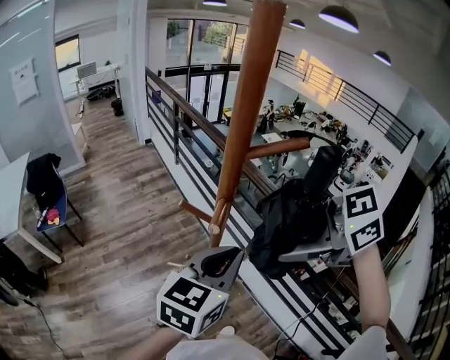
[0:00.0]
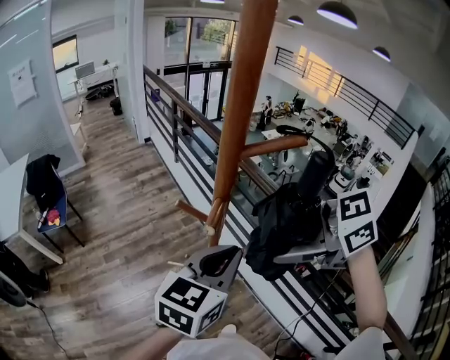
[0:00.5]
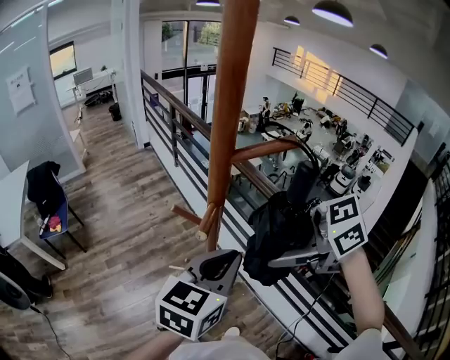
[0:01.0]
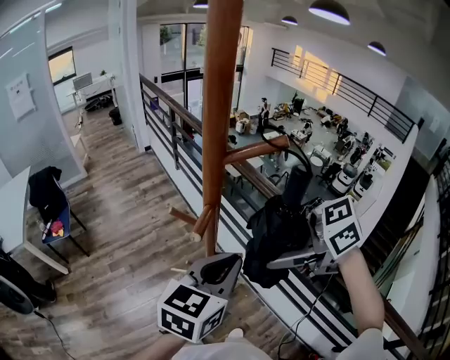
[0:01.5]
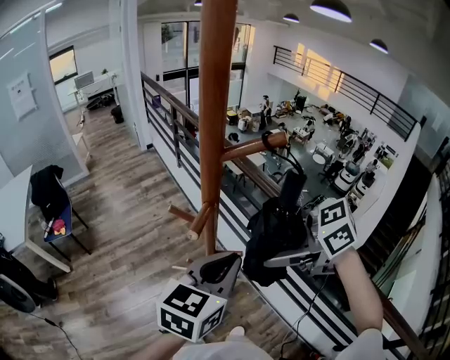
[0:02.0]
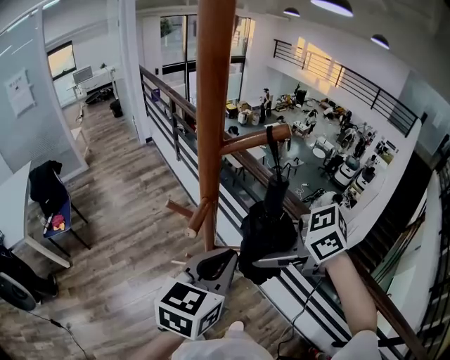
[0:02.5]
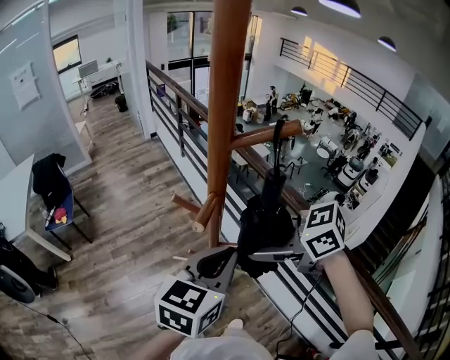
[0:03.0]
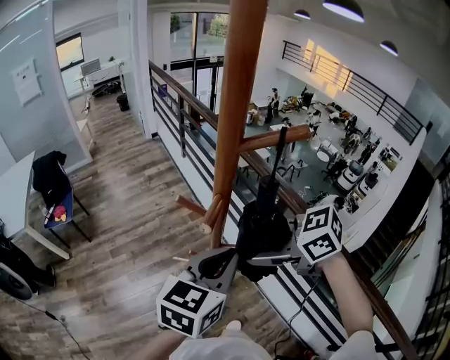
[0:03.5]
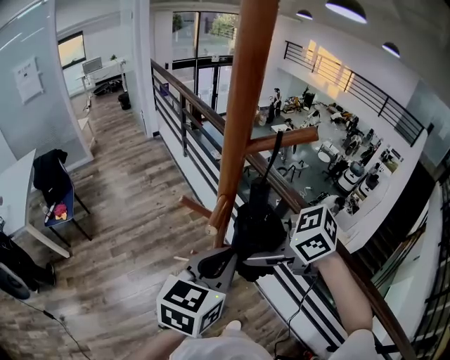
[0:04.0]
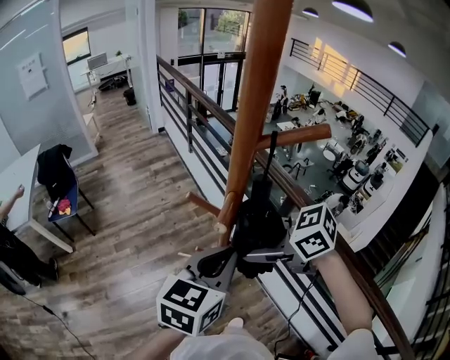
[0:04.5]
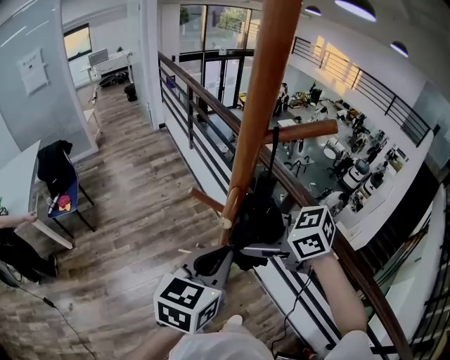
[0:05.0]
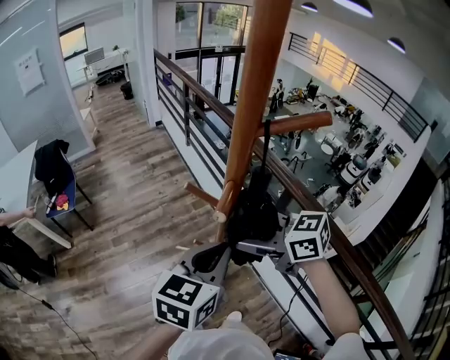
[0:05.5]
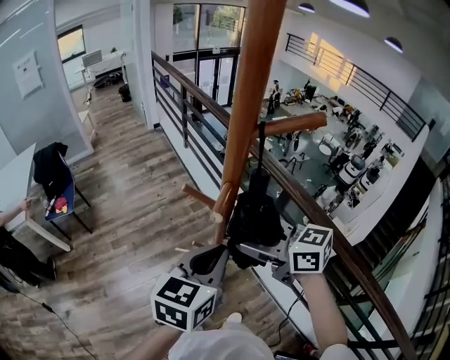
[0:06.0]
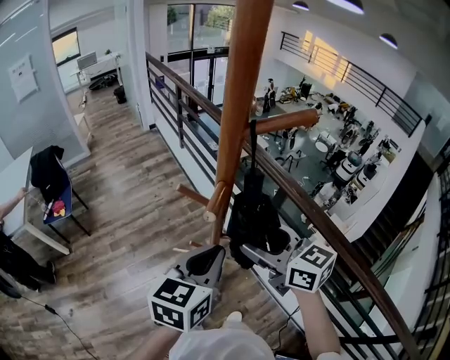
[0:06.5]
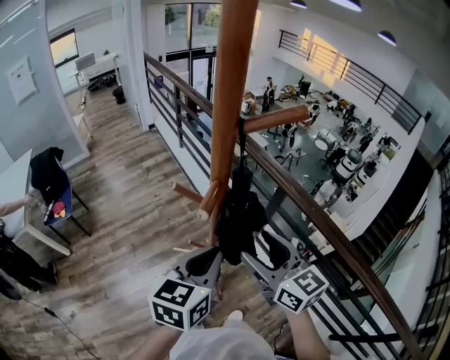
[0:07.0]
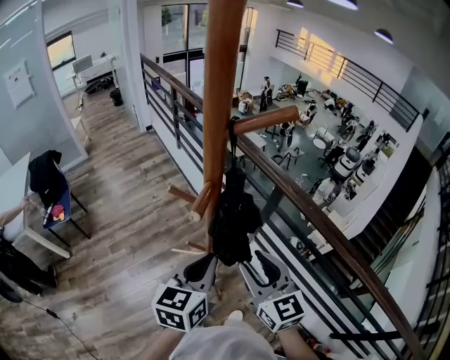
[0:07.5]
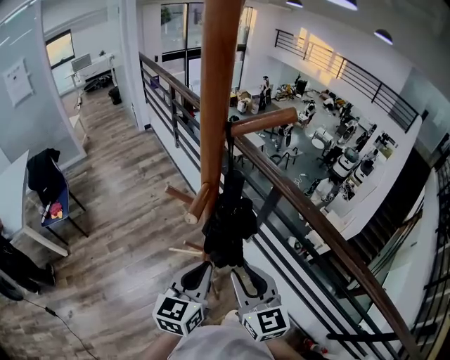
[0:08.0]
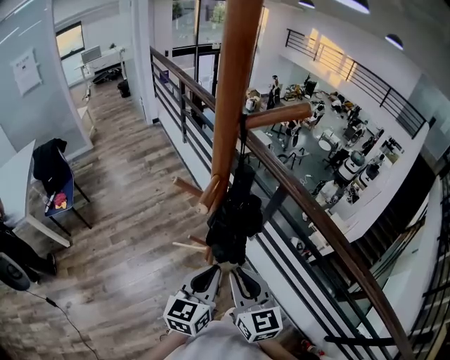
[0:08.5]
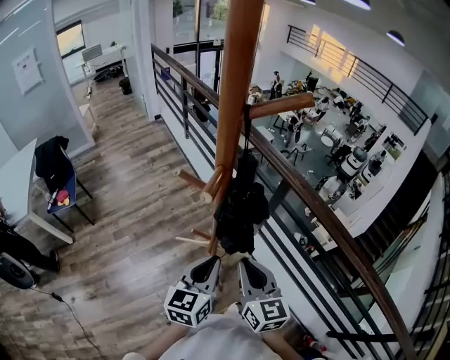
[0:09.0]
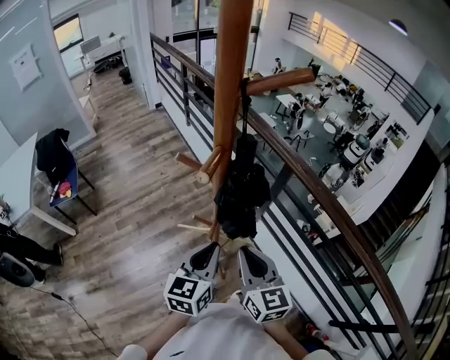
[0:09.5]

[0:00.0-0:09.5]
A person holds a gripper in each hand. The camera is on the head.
0:00.0 to 0:02.0: The right gripper is displaced downward by roughly 5 cm.
0:02.0 to 0:04.0: The right gripper ends up some 5 cm from where it was.
0:04.0 to 0:05.5: There are only small adjustments of the grippers.
0:05.5 to 0:07.5: The left gripper goes roughly 5 cm downward. The right gripper is displaced backward and to the right by roughly 10 cm, and rotates approximately 50 degrees.
0:07.5 to 0:09.5: The two grippers go approximately 5 cm downward. The right gripper closes its fingers.

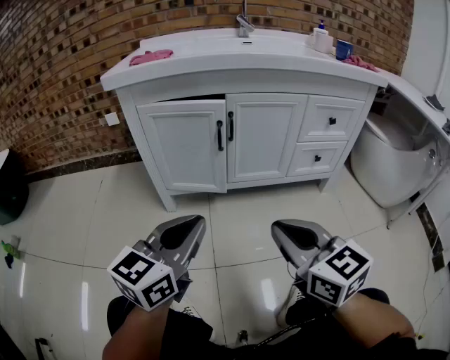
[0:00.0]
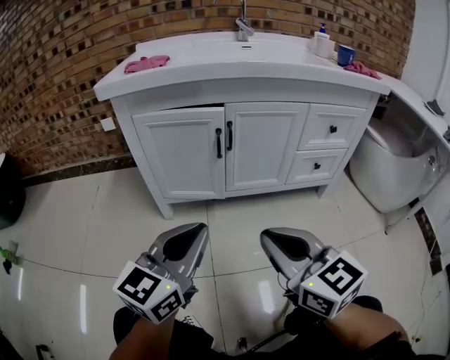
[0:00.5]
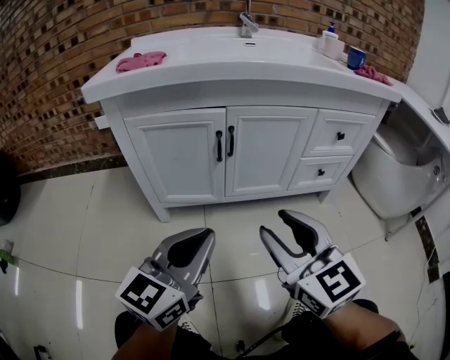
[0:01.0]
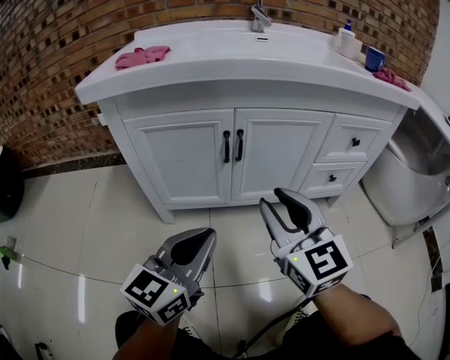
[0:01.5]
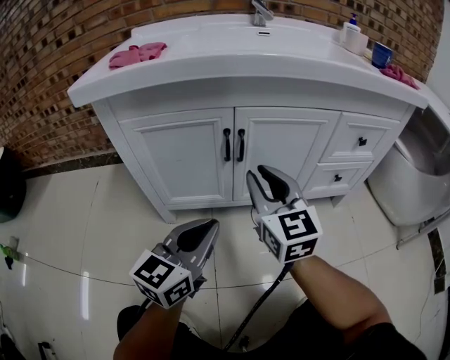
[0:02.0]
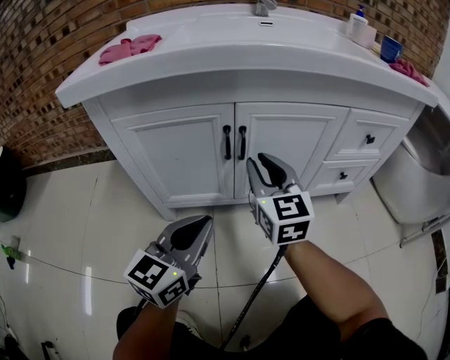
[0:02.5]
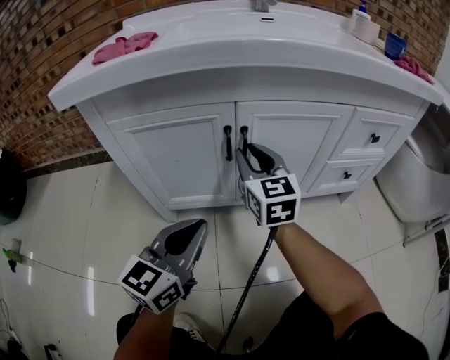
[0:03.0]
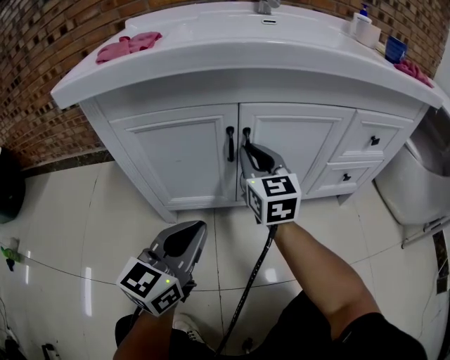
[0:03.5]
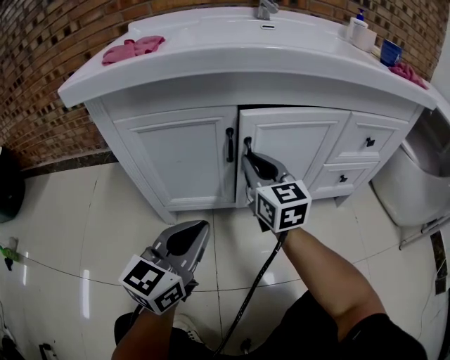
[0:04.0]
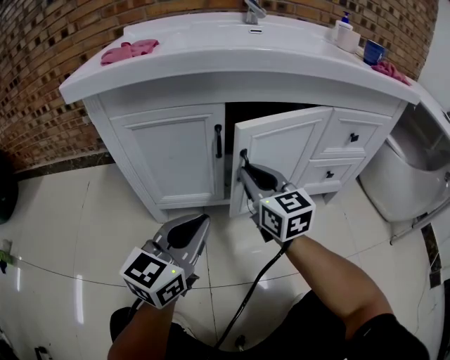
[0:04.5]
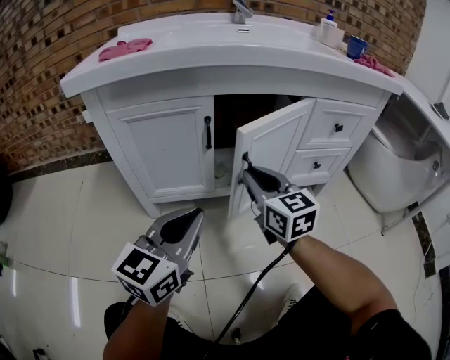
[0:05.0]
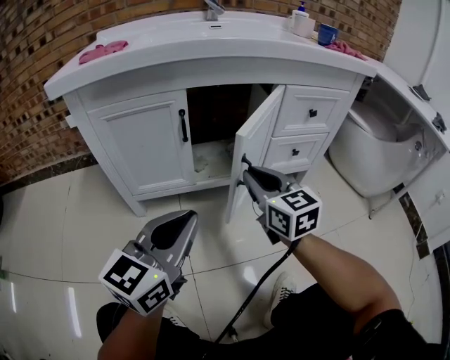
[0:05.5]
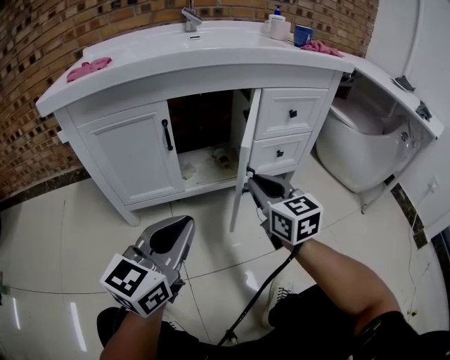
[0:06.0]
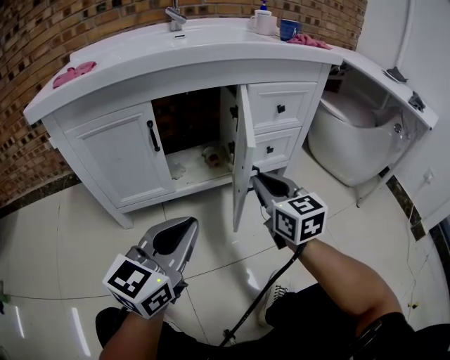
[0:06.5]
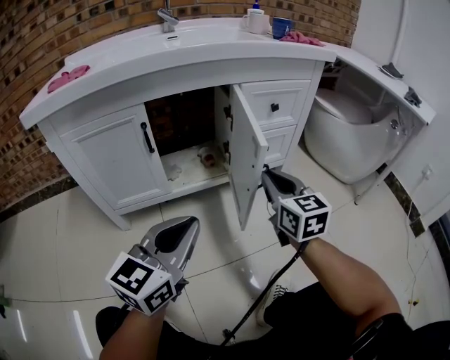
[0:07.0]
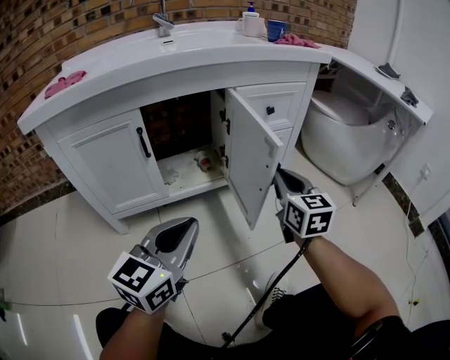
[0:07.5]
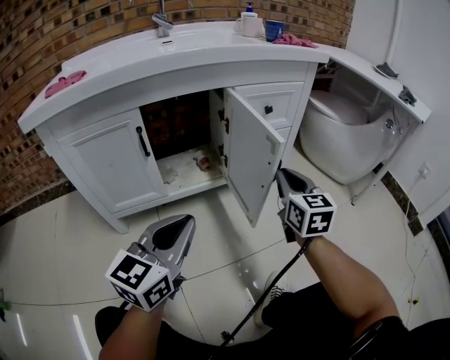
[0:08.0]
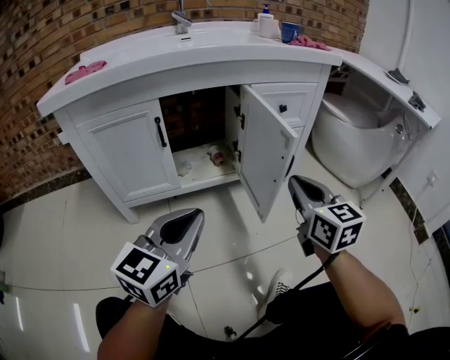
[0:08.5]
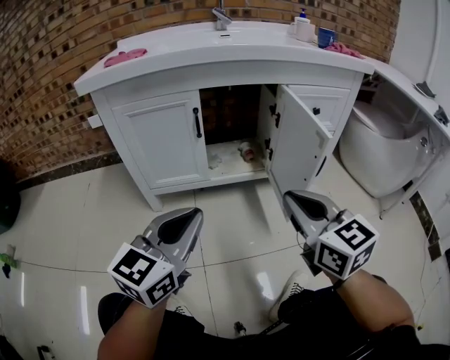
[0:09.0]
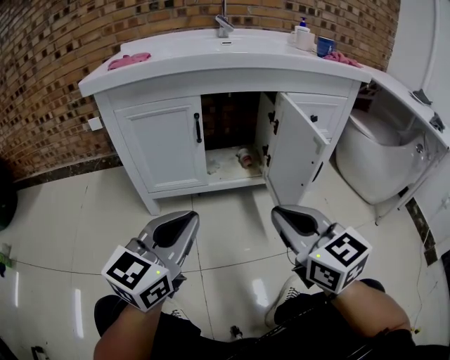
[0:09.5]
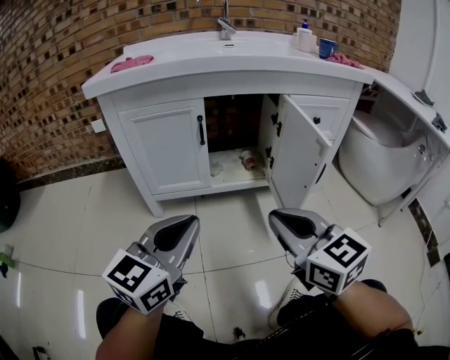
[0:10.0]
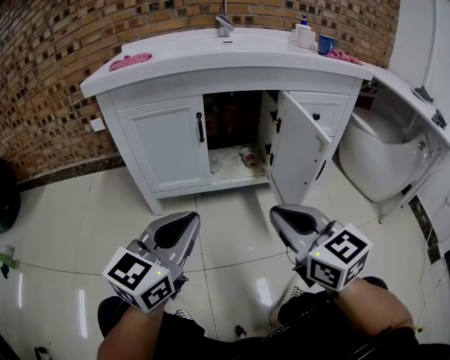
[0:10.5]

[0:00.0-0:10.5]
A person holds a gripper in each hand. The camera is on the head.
0:00.0 to 0:02.0: The right gripper is displaced forward by roughly 25 cm, and opens, while the left gripper heads forward, covering approximately 15 cm.
0:02.0 to 0:04.0: The right gripper shifts approximately 10 cm forward.
0:04.0 to 0:06.5: The left gripper is displaced to the right and backward by about 15 cm; the right gripper is displaced to the right and backward by about 30 cm.
0:06.5 to 0:08.5: The right gripper shifts about 10 cm to the right.
0:08.5 to 0:10.5: The right gripper travels to the left and backward by about 20 cm, and turns by about 30 degrees; the left gripper travels to the left by roughly 10 cm.

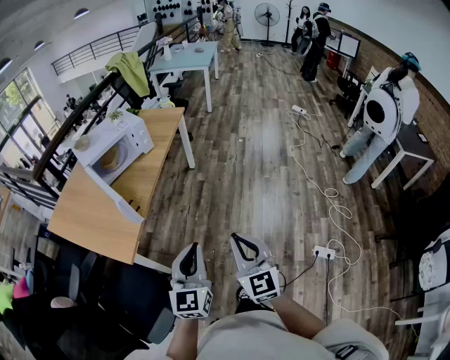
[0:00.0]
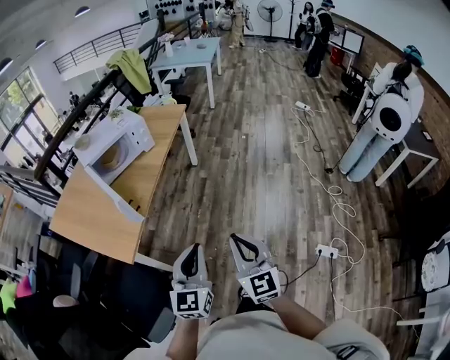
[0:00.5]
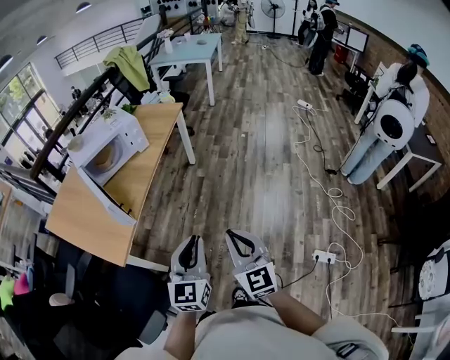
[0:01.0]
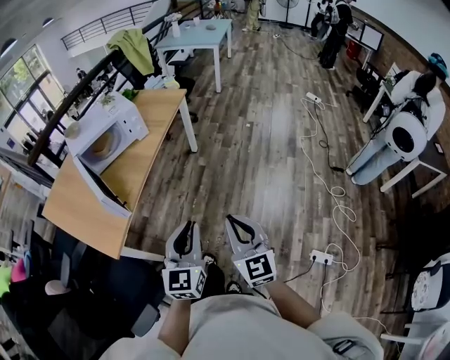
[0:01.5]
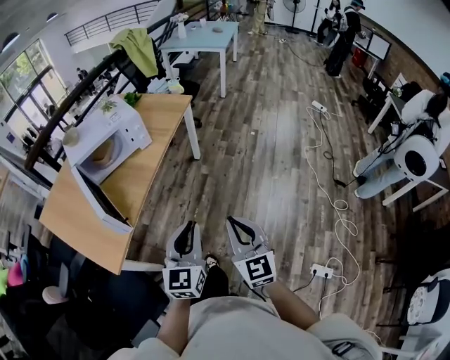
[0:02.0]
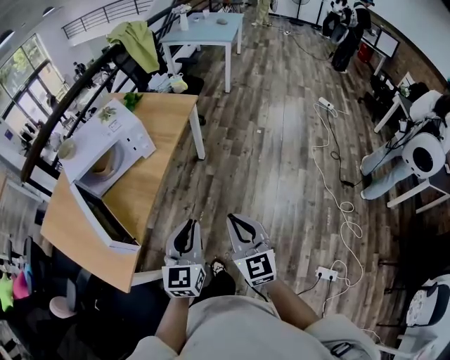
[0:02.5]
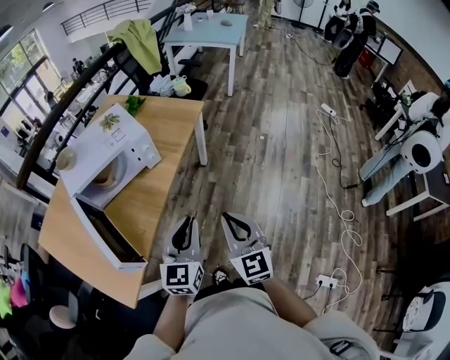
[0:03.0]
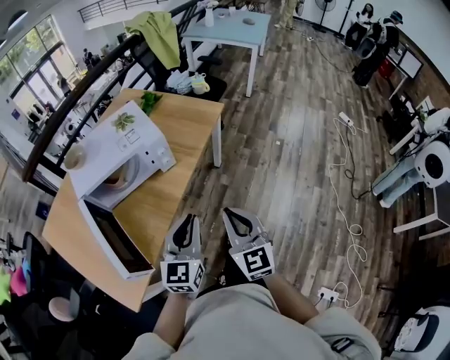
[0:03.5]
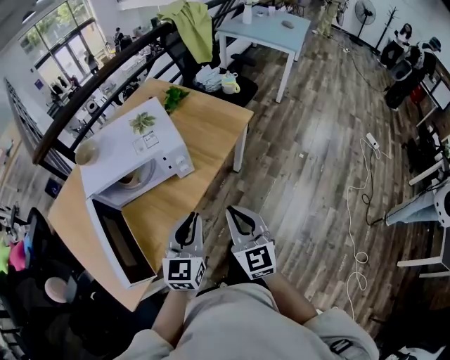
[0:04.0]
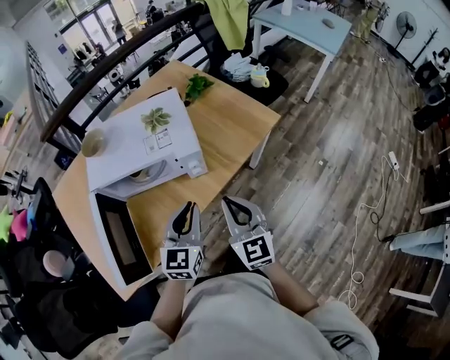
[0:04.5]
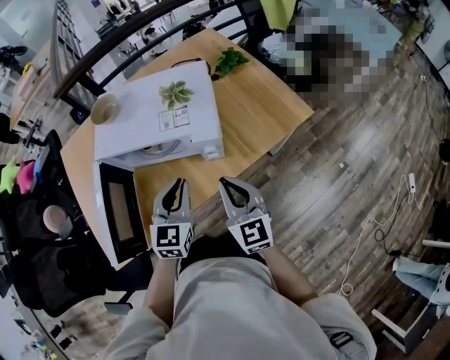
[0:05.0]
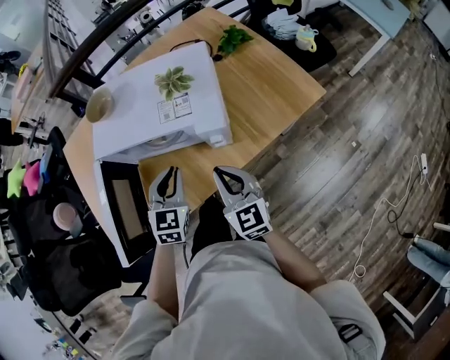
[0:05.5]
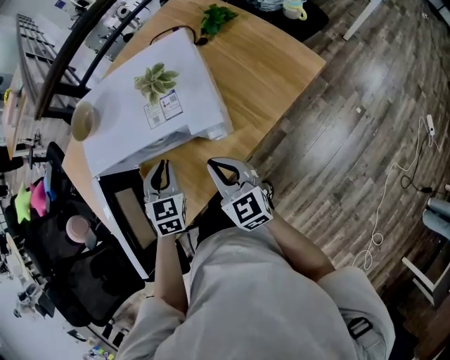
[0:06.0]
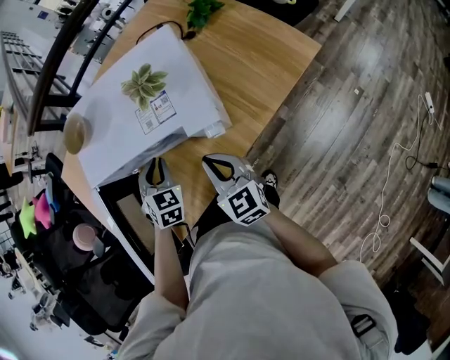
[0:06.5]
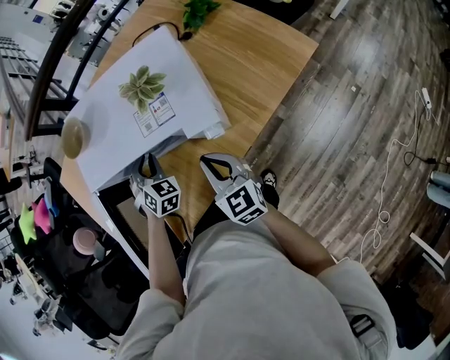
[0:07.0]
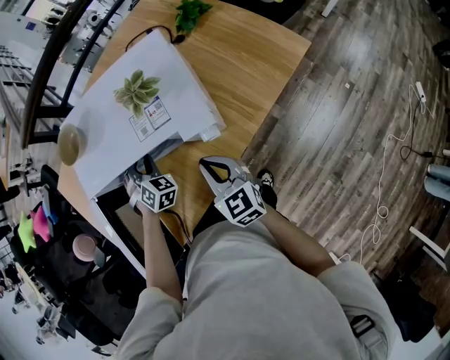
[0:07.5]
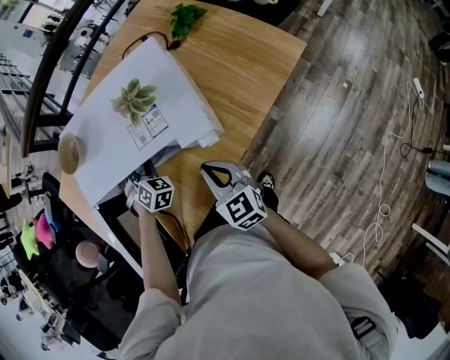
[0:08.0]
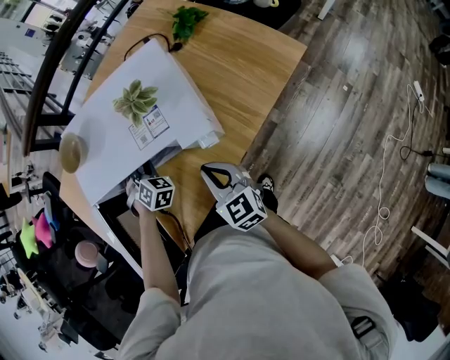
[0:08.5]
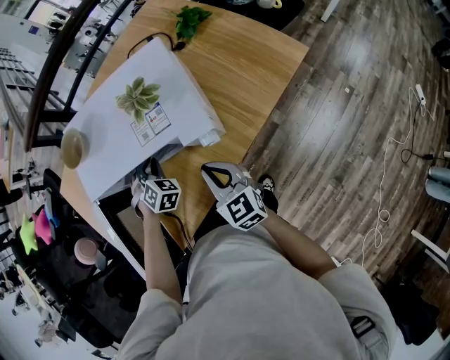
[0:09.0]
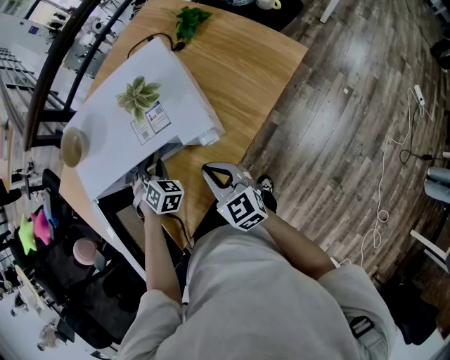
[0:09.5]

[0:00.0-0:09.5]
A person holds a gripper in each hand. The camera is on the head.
0:00.0 to 0:02.0: The two grippers go some 20 cm forward.
0:02.0 to 0:04.0: Both grippers travel together forward, roughly 35 cm.
0:04.0 to 0:05.5: The right gripper changes place by roughly 20 cm, and changes its angle by some 30 degrees, while the left gripper moves approximately 20 cm, and swivels about 30 degrees.
0:05.5 to 0:07.5: The right gripper shifts about 5 cm downward. The left gripper moves forward, downward and to the left, some 20 cm, and swivels approximately 40 degrees.
0:07.5 to 0:09.5: The grippers move only a little.
